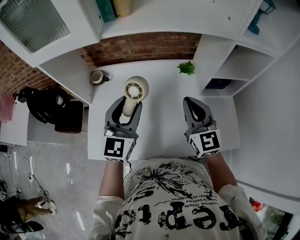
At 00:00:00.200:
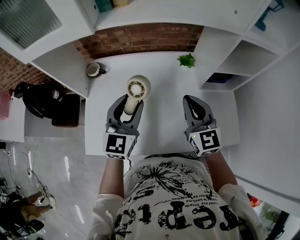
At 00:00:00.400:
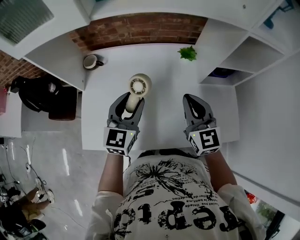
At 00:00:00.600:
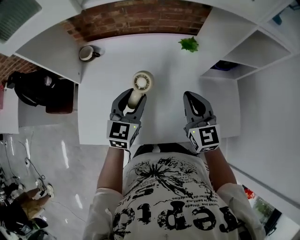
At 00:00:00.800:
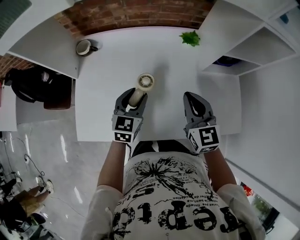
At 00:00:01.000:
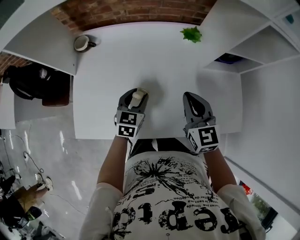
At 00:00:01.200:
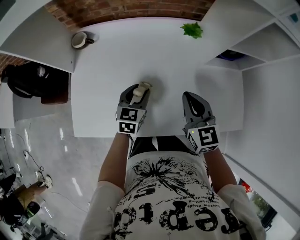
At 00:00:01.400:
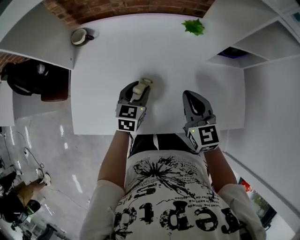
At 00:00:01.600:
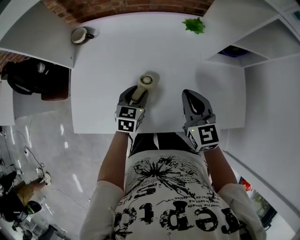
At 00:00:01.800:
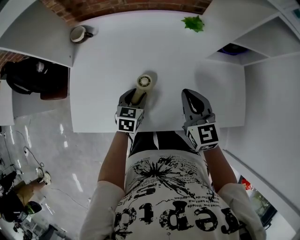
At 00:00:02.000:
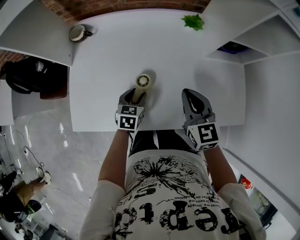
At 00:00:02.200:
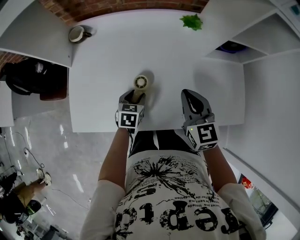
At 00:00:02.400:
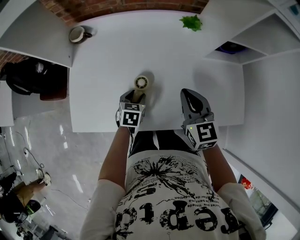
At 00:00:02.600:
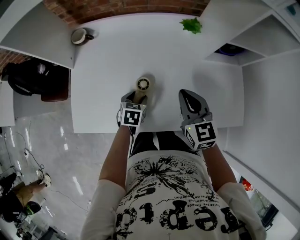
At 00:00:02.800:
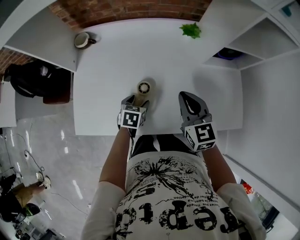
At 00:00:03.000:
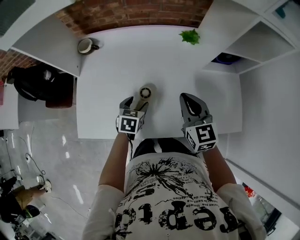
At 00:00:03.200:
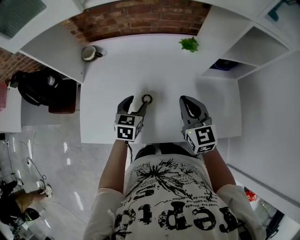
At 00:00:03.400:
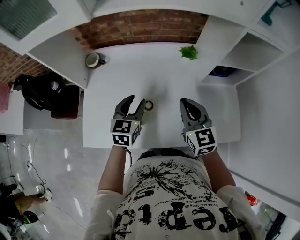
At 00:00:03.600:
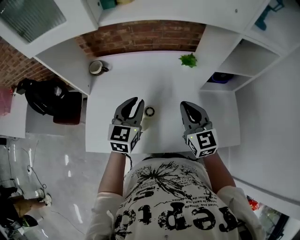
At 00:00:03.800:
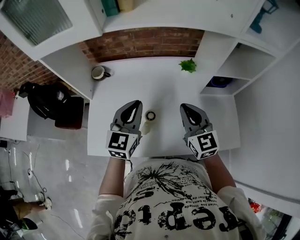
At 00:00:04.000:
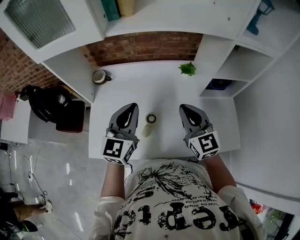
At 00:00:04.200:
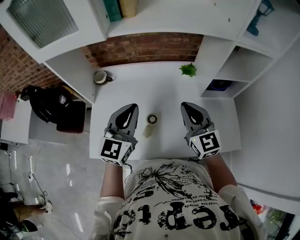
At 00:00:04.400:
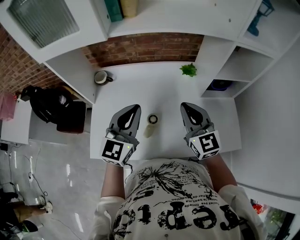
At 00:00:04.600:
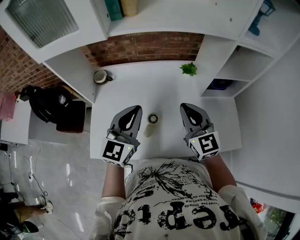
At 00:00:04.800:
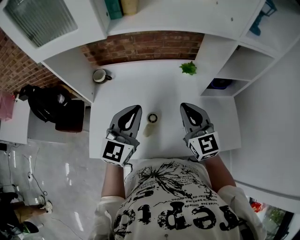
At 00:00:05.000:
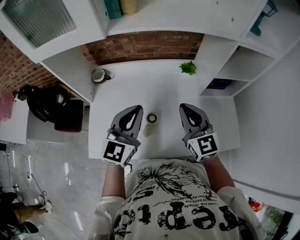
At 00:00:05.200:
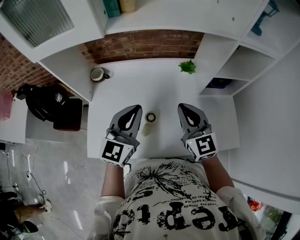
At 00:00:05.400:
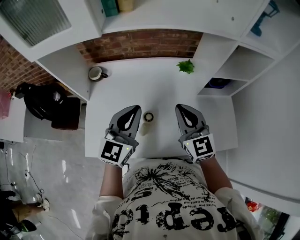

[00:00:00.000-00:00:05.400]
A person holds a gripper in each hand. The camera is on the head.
00:00:00.000 to 00:00:01.400: The right gripper heads downward, covering some 15 cm, and rotates approximately 20 degrees; the left gripper heads downward, covering approximately 25 cm, and tilts its fingers about 30 degrees downward.
00:00:01.400 to 00:00:02.800: The left gripper goes some 10 cm downward, and changes its angle by some 20 degrees.
00:00:02.800 to 00:00:04.000: The left gripper heads upward, covering approximately 35 cm, tips its fingers upward by approximately 50 degrees, and closes up. The right gripper moves upward, some 15 cm.
00:00:04.000 to 00:00:05.400: The grippers stay close to where they were, moving slightly.

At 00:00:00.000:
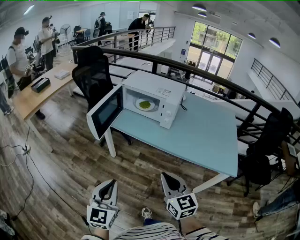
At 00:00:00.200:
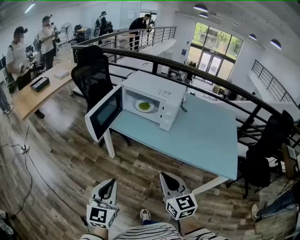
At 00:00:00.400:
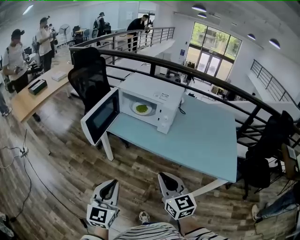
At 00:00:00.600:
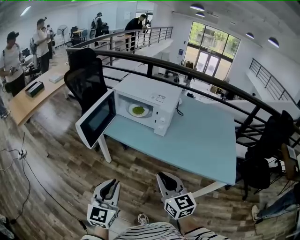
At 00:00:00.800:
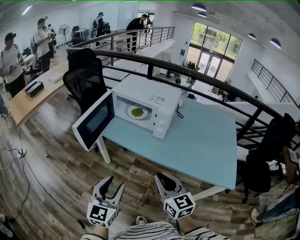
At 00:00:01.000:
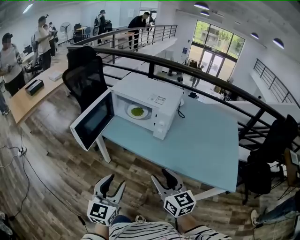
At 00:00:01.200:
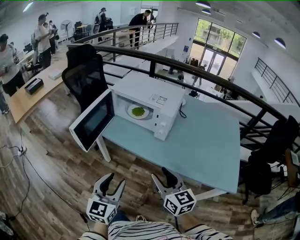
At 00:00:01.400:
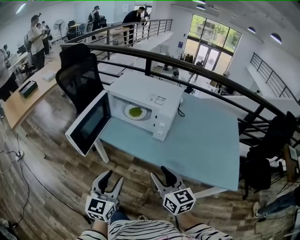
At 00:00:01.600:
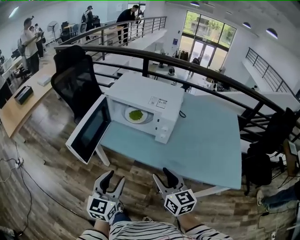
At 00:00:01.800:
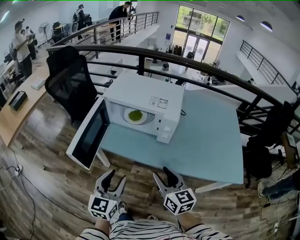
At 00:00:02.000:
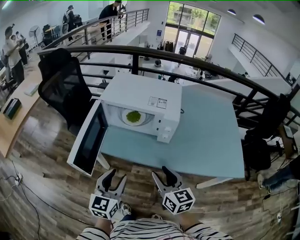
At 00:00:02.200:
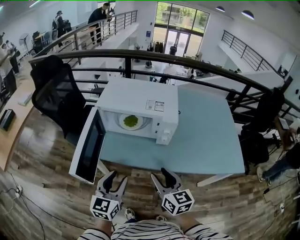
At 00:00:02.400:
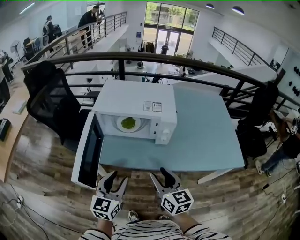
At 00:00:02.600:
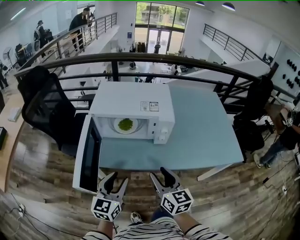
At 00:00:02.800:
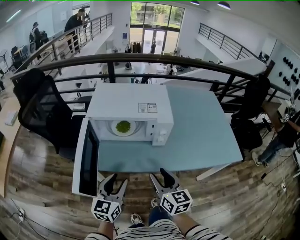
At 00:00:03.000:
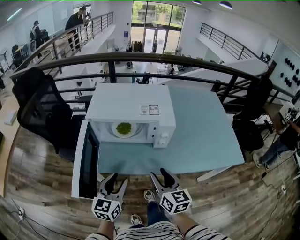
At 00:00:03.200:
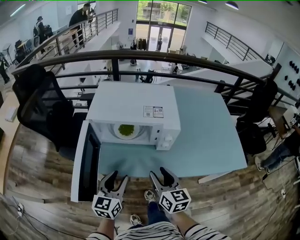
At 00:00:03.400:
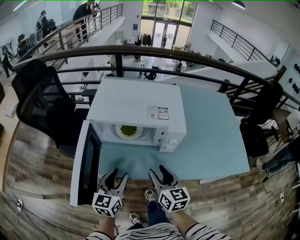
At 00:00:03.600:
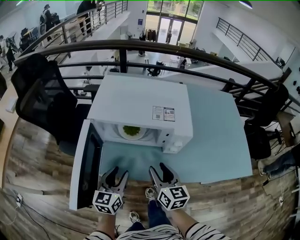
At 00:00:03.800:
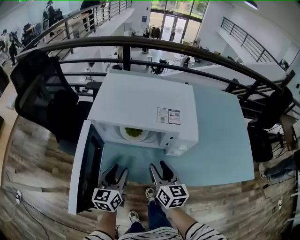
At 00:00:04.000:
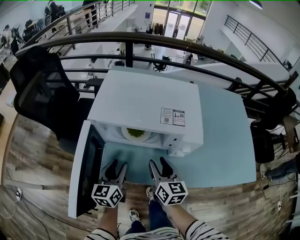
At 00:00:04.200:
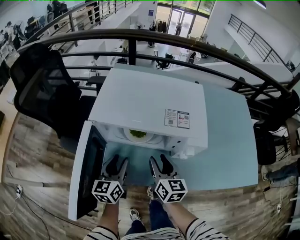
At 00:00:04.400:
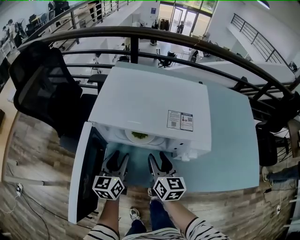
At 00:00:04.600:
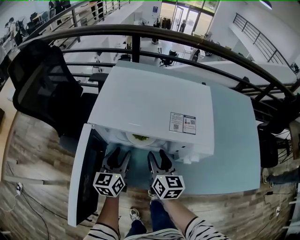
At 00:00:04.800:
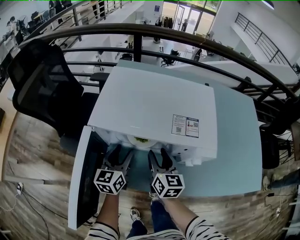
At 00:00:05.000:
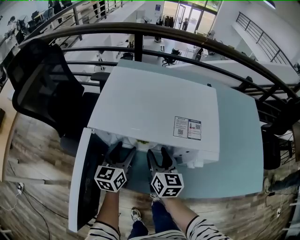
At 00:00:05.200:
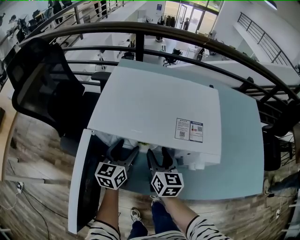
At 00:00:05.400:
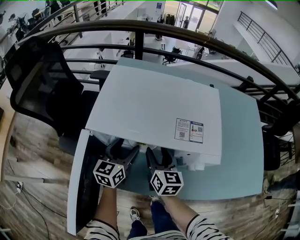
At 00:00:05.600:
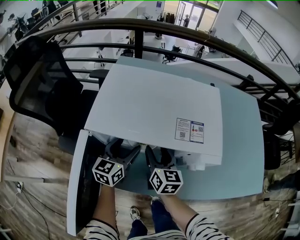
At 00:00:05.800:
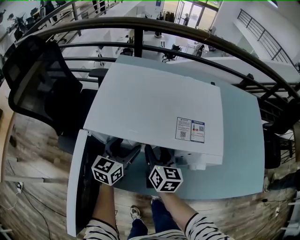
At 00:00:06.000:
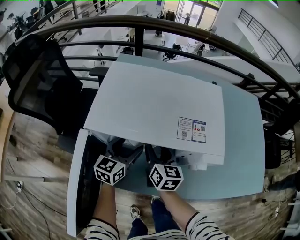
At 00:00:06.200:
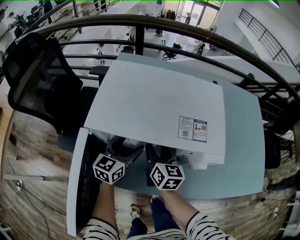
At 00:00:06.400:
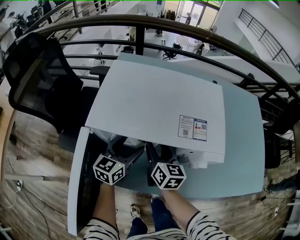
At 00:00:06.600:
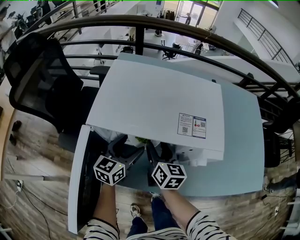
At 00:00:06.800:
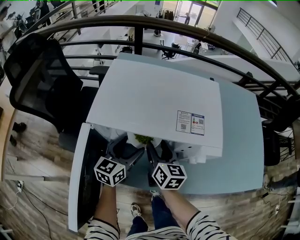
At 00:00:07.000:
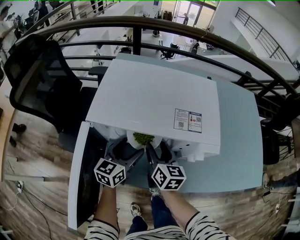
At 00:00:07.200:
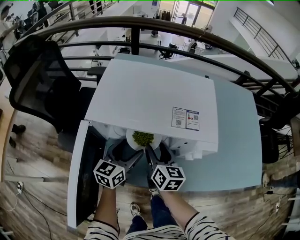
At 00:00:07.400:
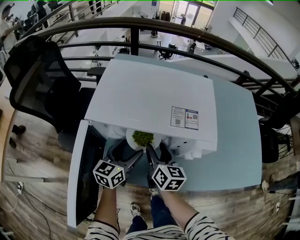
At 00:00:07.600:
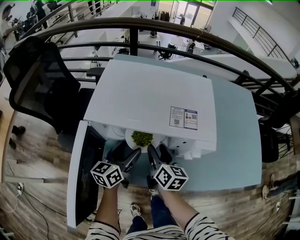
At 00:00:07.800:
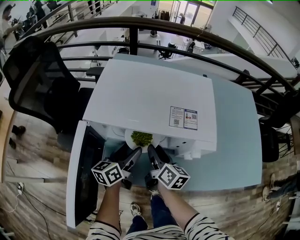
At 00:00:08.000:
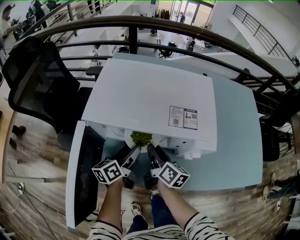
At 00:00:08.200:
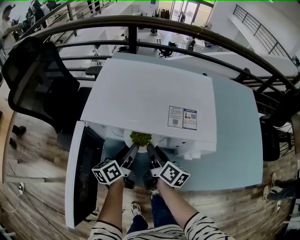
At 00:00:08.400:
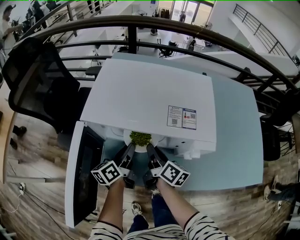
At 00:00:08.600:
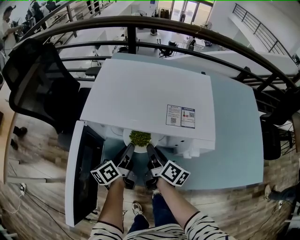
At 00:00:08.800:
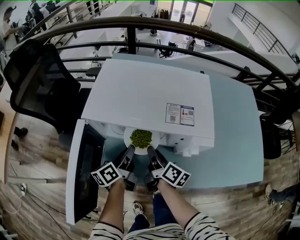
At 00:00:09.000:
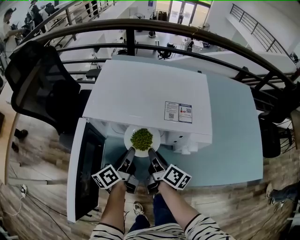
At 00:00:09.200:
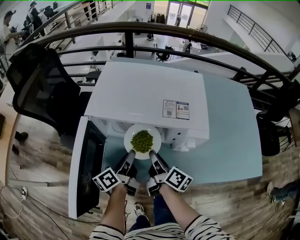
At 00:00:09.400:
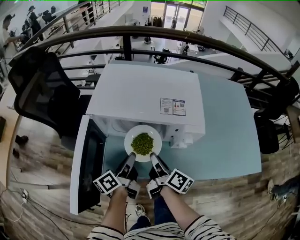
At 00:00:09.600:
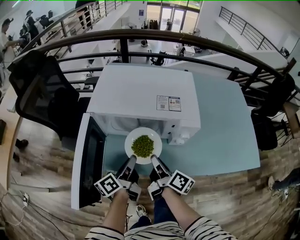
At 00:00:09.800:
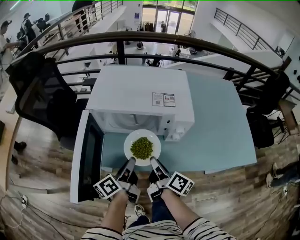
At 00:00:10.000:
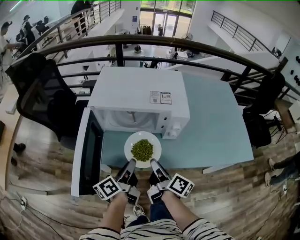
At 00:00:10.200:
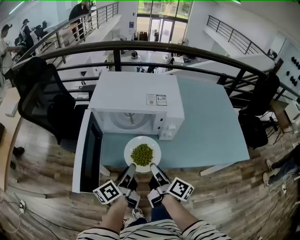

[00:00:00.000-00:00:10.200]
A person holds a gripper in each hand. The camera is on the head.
00:00:00.000 to 00:00:01.400: Both grippers travel together forward, approximately 20 cm. The left gripper opens up, while the right gripper opens up.
00:00:01.400 to 00:00:03.000: The right gripper changes place by about 15 cm, and turns by roughly 30 degrees; the left gripper ends up about 20 cm from where it was, and rotates some 30 degrees.
00:00:03.000 to 00:00:04.400: The two grippers go roughly 20 cm forward.
00:00:04.400 to 00:00:05.800: The grippers both shift forward by about 10 cm. The left gripper opens its fingers.
00:00:05.800 to 00:00:07.200: The left gripper ends up approximately 5 cm from where it was.
00:00:07.200 to 00:00:08.800: The right gripper swivels about 40 degrees, and closes, while the left gripper rolls counterclockwise, seen from behind, by some 40 degrees, and closes.
00:00:08.800 to 00:00:10.200: Both grippers travel together backward and upward, approximately 20 cm.

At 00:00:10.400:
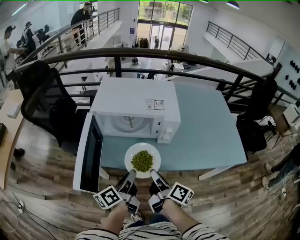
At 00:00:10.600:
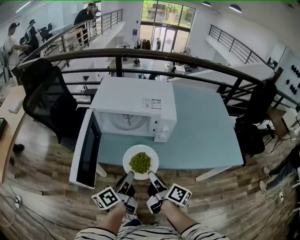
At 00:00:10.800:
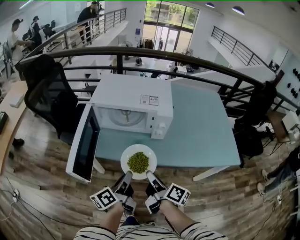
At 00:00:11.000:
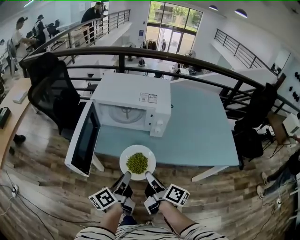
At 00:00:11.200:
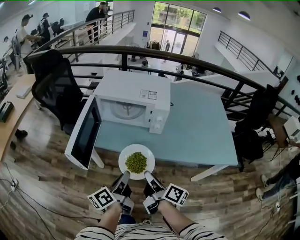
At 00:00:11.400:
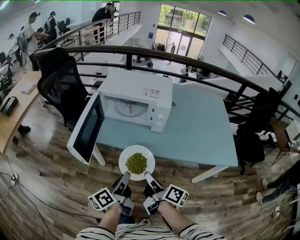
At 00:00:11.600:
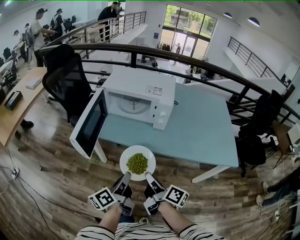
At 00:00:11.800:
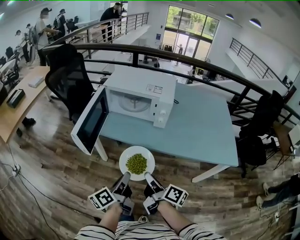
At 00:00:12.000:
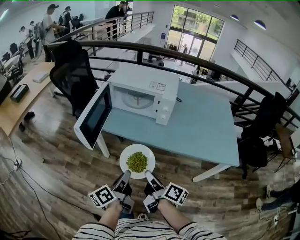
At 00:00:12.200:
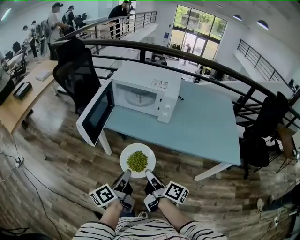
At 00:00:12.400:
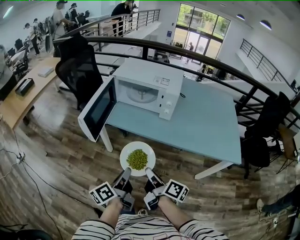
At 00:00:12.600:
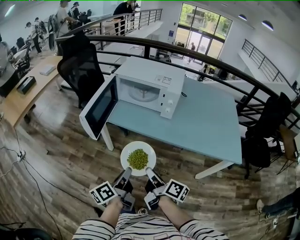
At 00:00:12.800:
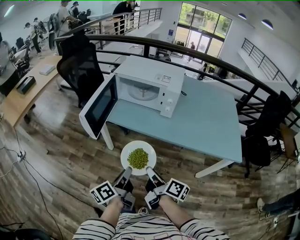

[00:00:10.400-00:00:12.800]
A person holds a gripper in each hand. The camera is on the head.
00:00:10.400 to 00:00:11.600: Both grippers move backward, approximately 15 cm.
00:00:11.600 to 00:00:12.800: Both grippers move backward, roughly 5 cm.

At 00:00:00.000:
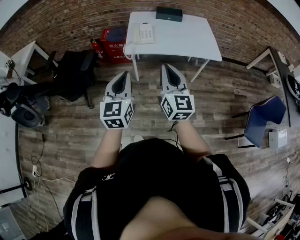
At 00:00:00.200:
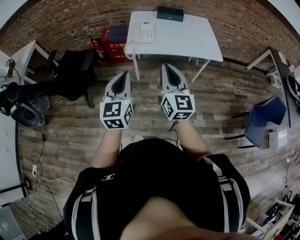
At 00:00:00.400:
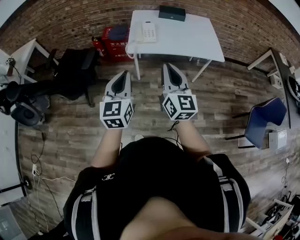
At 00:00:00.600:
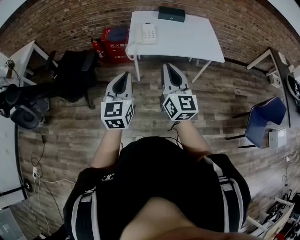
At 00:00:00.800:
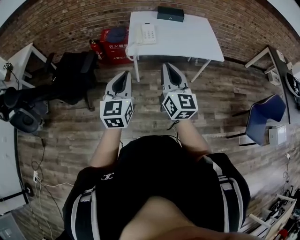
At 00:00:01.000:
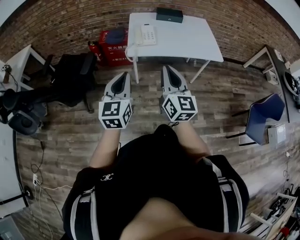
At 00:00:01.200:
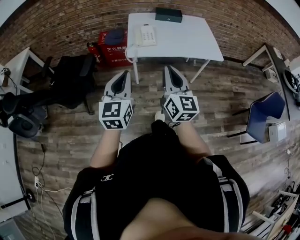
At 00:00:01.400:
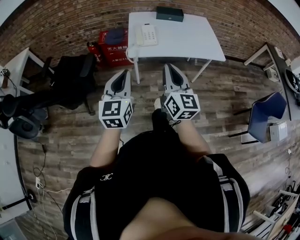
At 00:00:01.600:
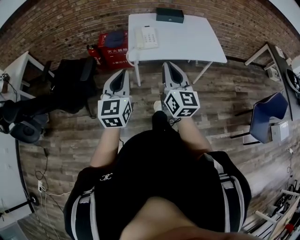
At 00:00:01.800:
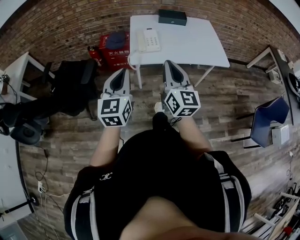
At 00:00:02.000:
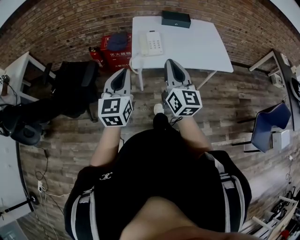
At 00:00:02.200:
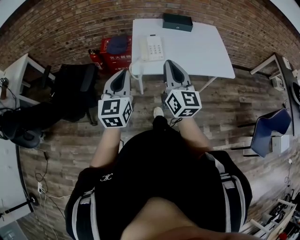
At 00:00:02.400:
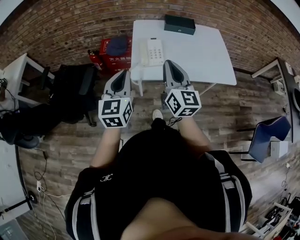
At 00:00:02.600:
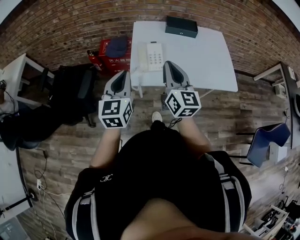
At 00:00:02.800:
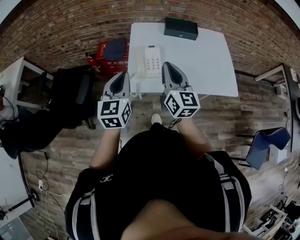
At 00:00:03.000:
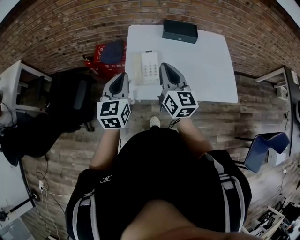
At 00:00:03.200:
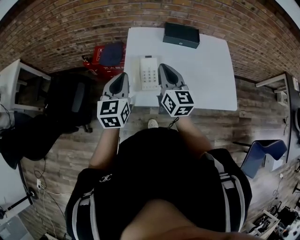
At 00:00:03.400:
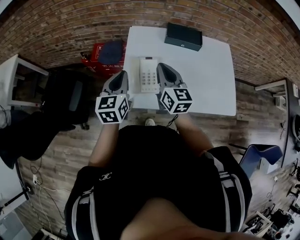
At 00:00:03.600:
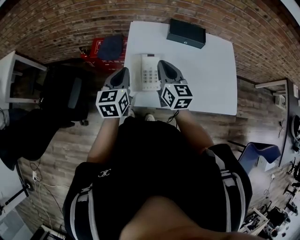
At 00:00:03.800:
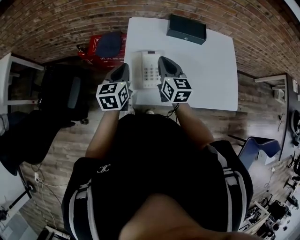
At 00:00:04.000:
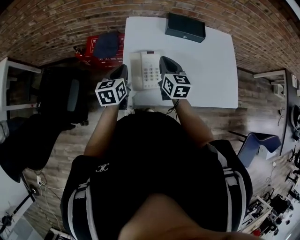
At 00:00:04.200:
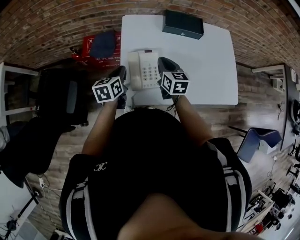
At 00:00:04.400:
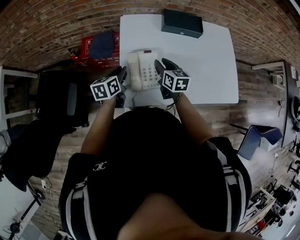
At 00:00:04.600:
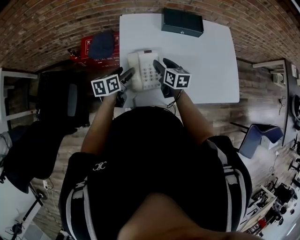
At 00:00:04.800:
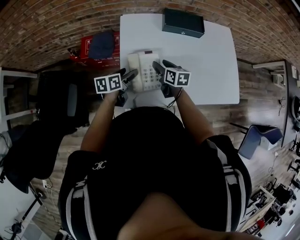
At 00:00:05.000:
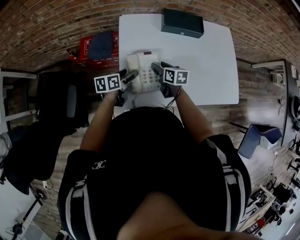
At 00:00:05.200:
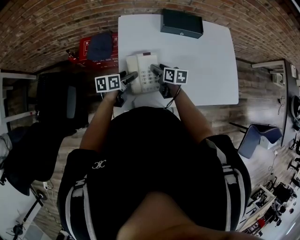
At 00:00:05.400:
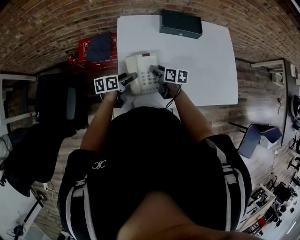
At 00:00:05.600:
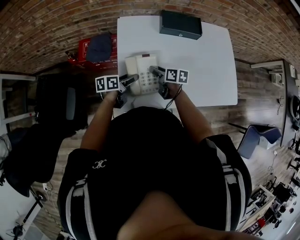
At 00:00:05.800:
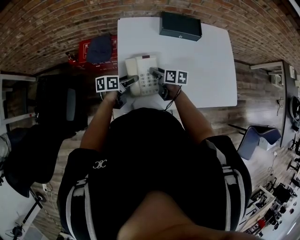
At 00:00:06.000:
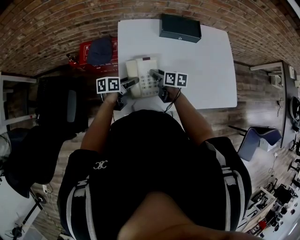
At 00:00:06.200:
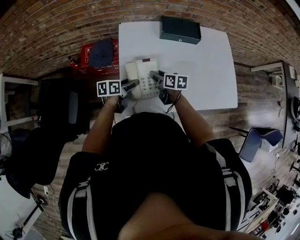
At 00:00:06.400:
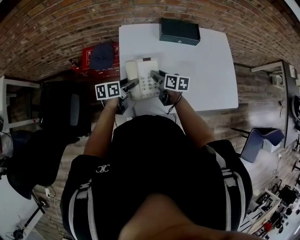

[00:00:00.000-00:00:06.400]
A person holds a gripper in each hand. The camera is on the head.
00:00:00.000 to 00:00:01.600: Both grippers move forward and to the left, some 10 cm.
00:00:01.600 to 00:00:03.200: The grippers both shift forward by about 40 cm.
00:00:03.200 to 00:00:04.800: The two grippers go about 25 cm downward and forward. The right gripper points its fingers about 30 degrees further downward, and opens. Meanwhile the left gripper rotates roughly 50 degrees, and opens its fingers.
00:00:04.800 to 00:00:06.400: The grippers move only a little.
